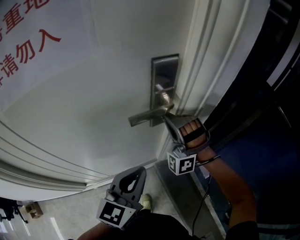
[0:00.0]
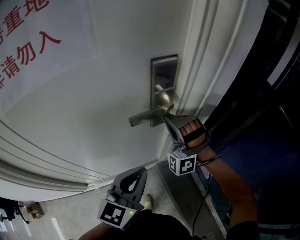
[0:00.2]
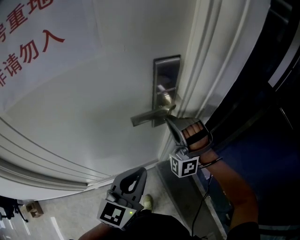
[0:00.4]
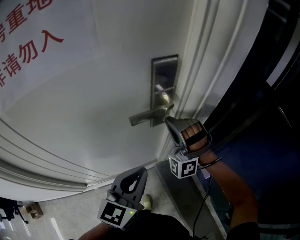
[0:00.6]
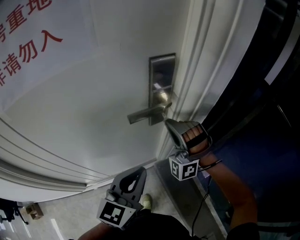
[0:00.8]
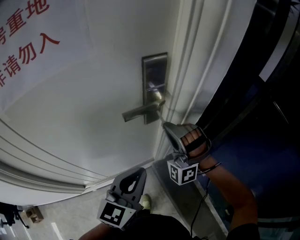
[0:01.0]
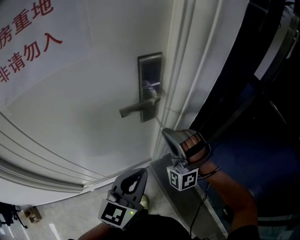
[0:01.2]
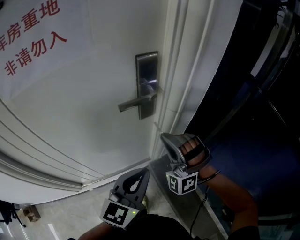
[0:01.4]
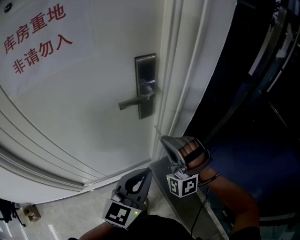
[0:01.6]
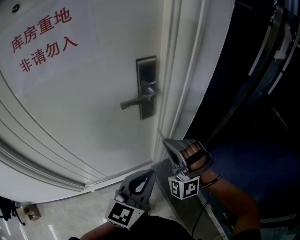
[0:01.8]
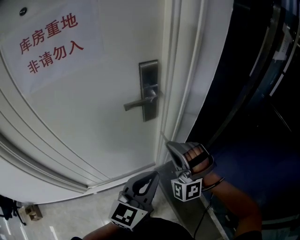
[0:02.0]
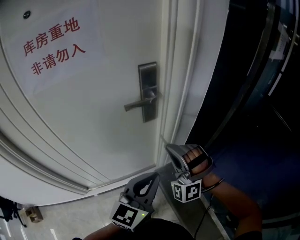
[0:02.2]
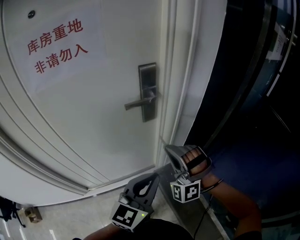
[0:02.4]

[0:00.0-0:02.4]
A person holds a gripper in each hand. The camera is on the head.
0:00.0 to 0:01.2: The left gripper changes place by some 5 cm. The right gripper travels backward by approximately 10 cm.
0:01.2 to 0:02.4: The right gripper shifts approximately 10 cm backward. Meanwhile the left gripper heads backward and to the right, covering some 10 cm.

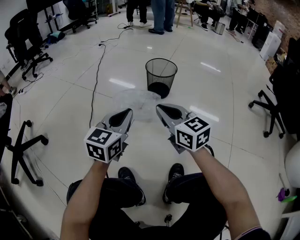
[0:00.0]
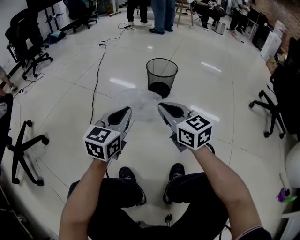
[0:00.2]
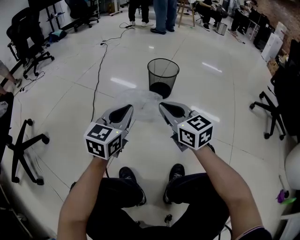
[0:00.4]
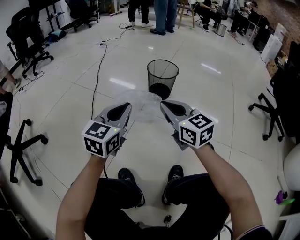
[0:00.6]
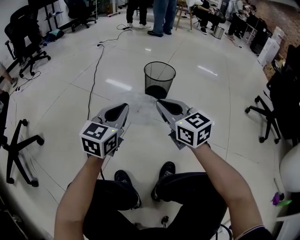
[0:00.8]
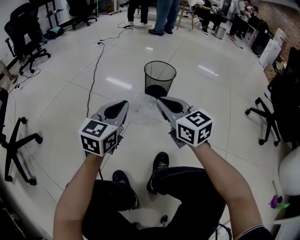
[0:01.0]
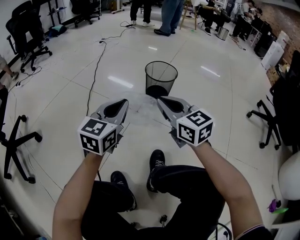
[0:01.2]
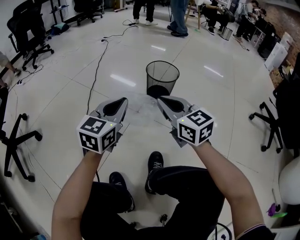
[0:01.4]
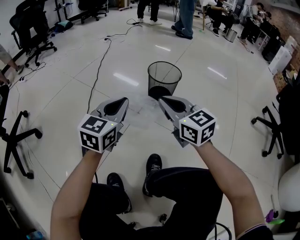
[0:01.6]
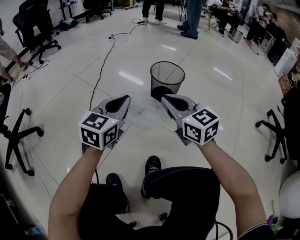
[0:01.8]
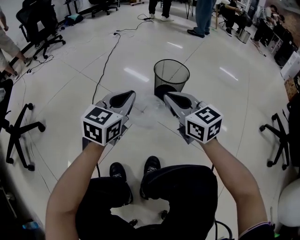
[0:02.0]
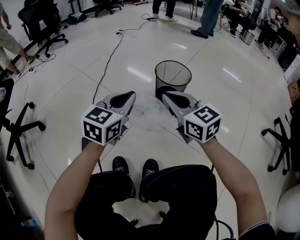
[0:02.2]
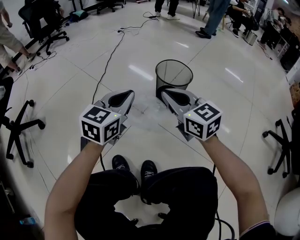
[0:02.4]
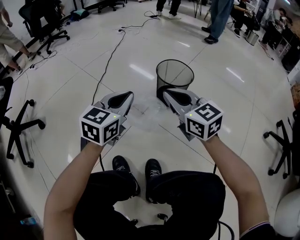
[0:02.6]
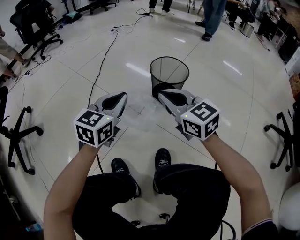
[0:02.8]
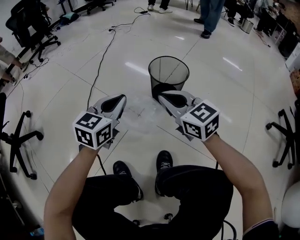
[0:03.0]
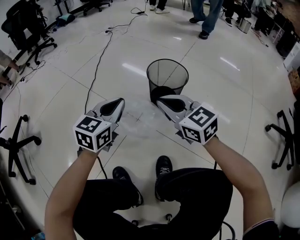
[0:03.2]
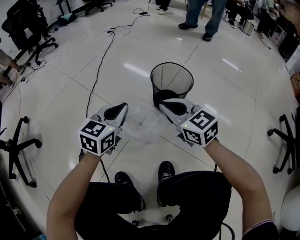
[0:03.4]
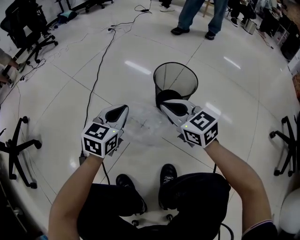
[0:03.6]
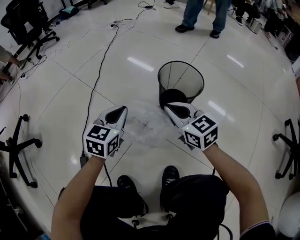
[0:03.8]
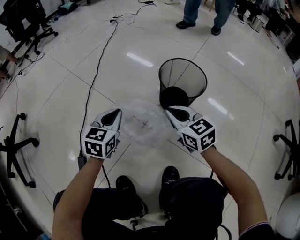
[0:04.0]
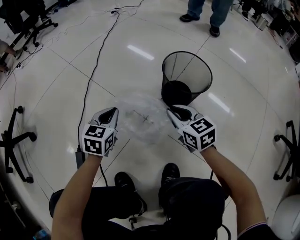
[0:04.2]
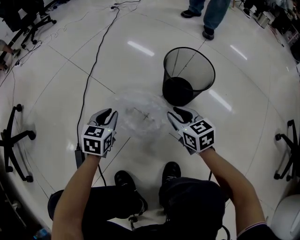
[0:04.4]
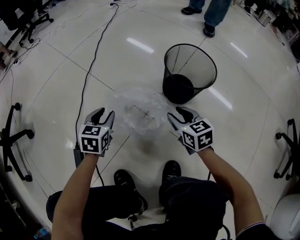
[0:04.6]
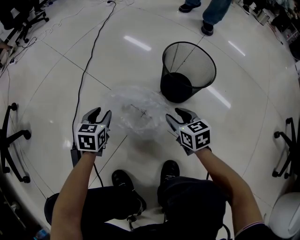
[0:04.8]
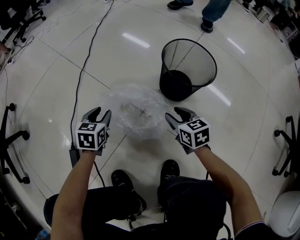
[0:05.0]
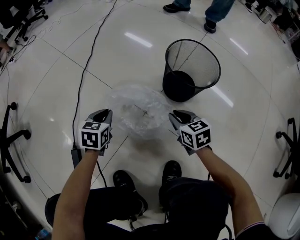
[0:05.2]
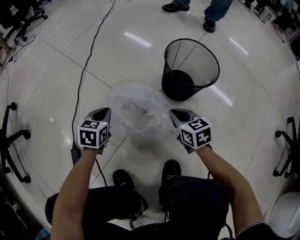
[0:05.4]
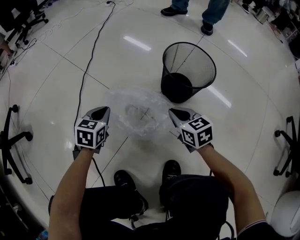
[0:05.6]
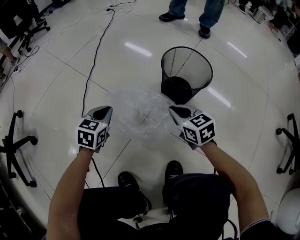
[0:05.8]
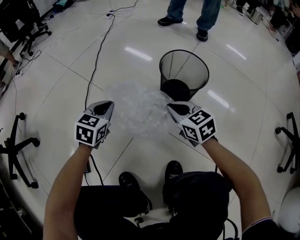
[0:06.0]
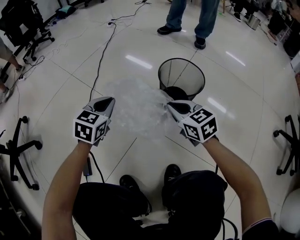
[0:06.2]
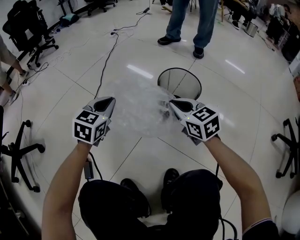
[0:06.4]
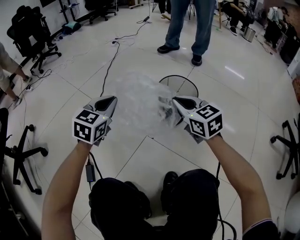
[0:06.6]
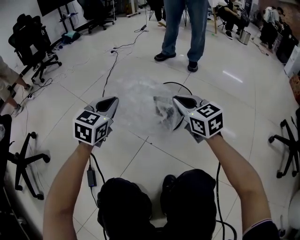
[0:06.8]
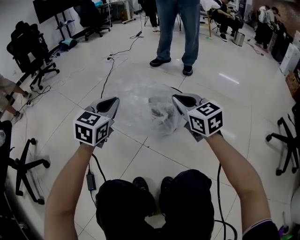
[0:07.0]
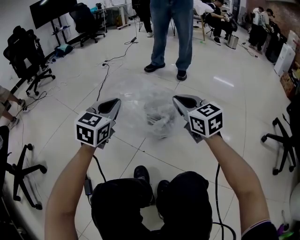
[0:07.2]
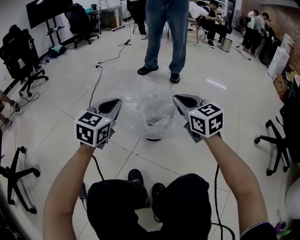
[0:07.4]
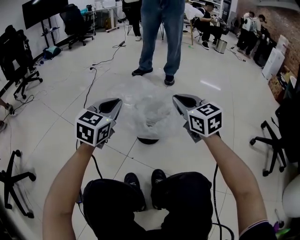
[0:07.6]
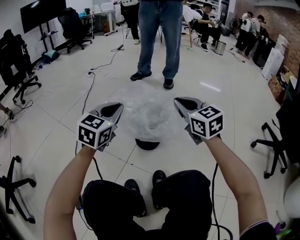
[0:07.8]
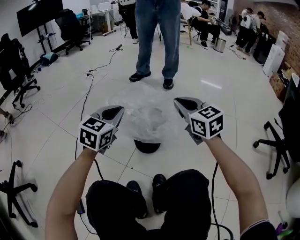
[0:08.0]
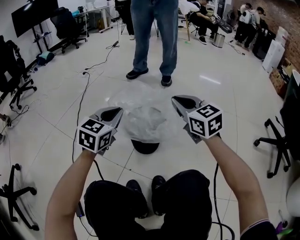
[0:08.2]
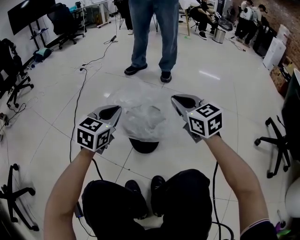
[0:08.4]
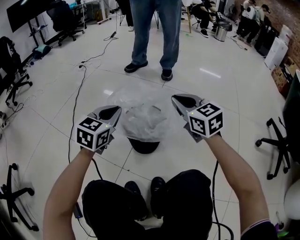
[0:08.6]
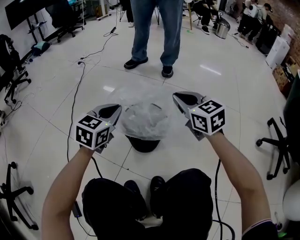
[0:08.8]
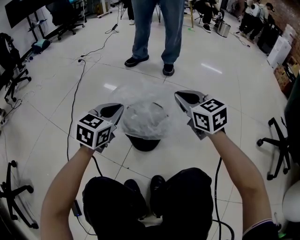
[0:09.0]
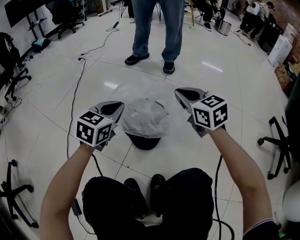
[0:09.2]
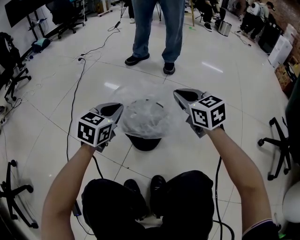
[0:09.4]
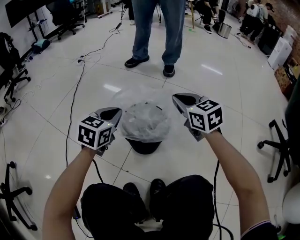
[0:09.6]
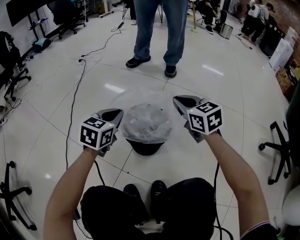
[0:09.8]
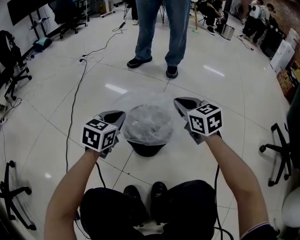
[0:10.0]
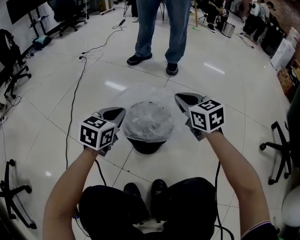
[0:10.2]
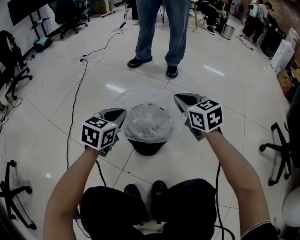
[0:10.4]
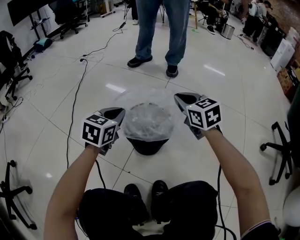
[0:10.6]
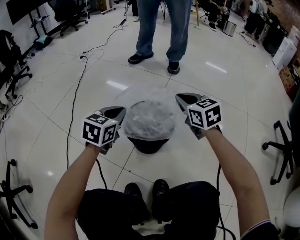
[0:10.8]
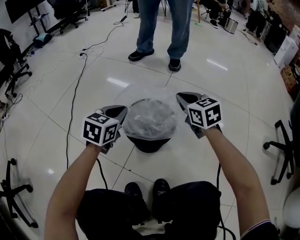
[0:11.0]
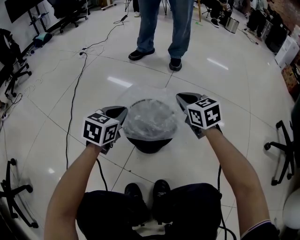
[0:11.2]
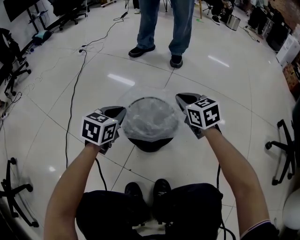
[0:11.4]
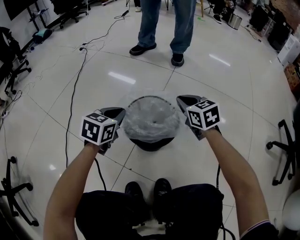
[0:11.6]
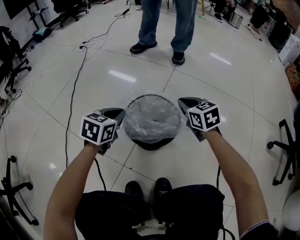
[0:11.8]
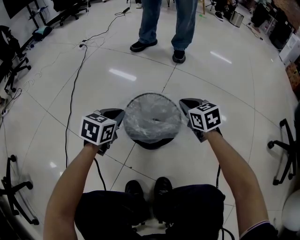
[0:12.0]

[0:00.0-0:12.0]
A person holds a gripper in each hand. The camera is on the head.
0:00.0 to 0:01.6: The two grippers go some 10 cm forward.
0:01.6 to 0:03.0: The two grippers go about 10 cm forward.
0:03.0 to 0:04.4: The right gripper shifts some 25 cm downward and forward, rotates roughly 20 degrees, and opens. Meanwhile the left gripper travels downward, forward and to the left by roughly 25 cm, and swivels about 30 degrees.
0:04.4 to 0:06.0: The right gripper closes its fingers. The left gripper goes roughly 5 cm upward, and opens, then closes again.
0:06.0 to 0:07.6: The grippers both shift upward and to the right by some 30 cm. The right gripper swivels roughly 30 degrees, while the left gripper rotates about 30 degrees.
0:07.6 to 0:09.0: The two grippers go roughly 15 cm forward and downward.
0:09.0 to 0:10.4: The right gripper shifts by roughly 5 cm.
0:10.4 to 0:12.0: The two grippers go approximately 10 cm downward.

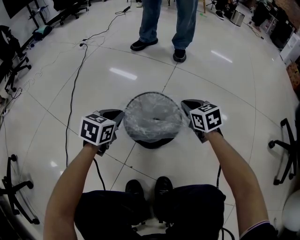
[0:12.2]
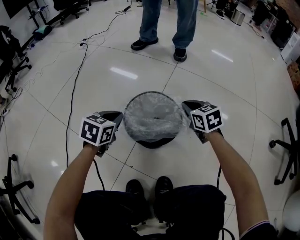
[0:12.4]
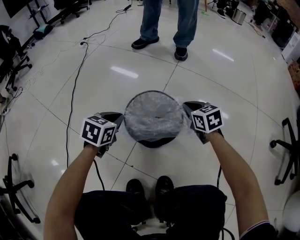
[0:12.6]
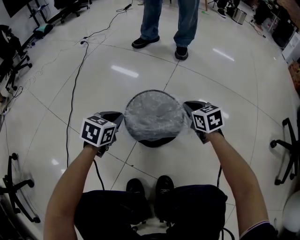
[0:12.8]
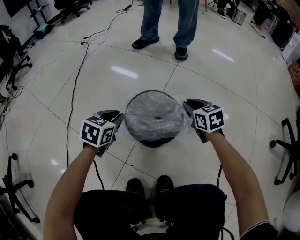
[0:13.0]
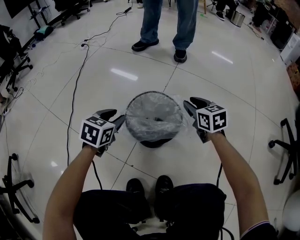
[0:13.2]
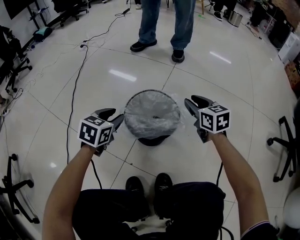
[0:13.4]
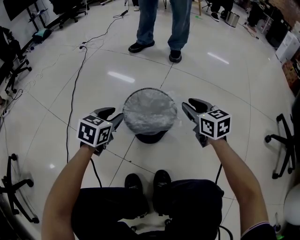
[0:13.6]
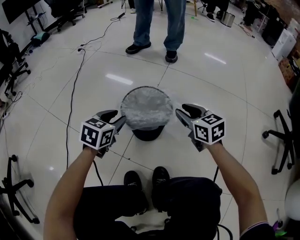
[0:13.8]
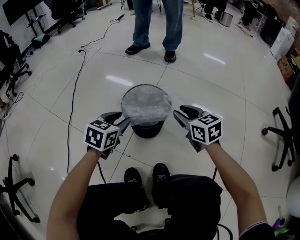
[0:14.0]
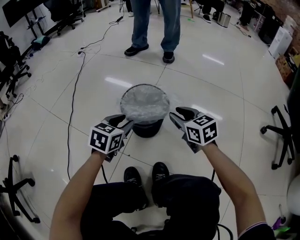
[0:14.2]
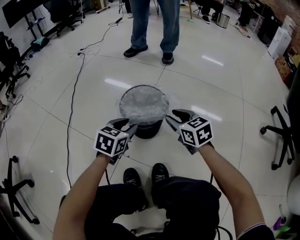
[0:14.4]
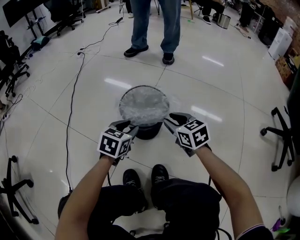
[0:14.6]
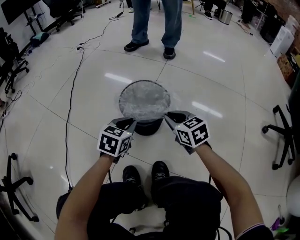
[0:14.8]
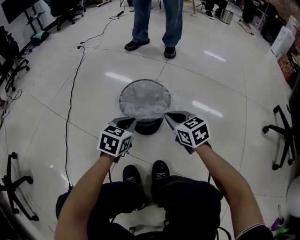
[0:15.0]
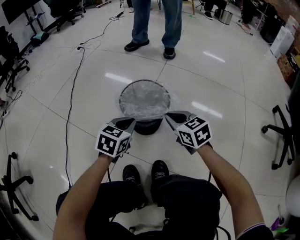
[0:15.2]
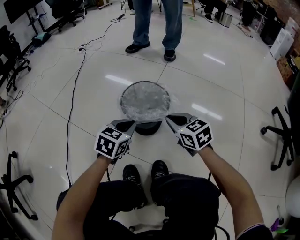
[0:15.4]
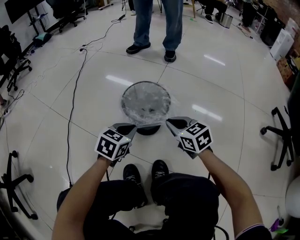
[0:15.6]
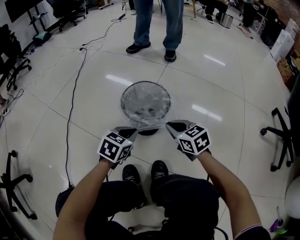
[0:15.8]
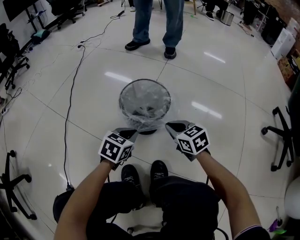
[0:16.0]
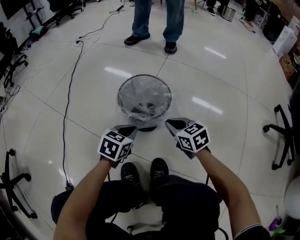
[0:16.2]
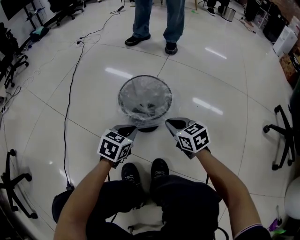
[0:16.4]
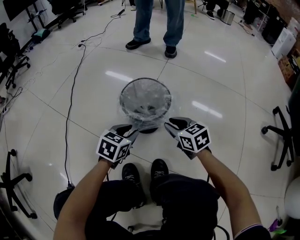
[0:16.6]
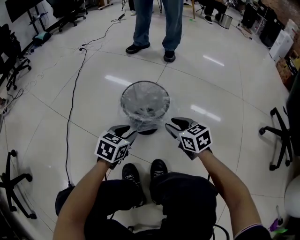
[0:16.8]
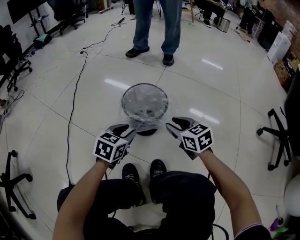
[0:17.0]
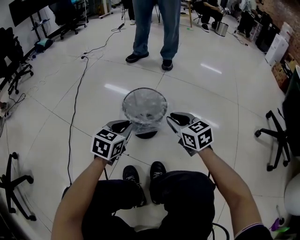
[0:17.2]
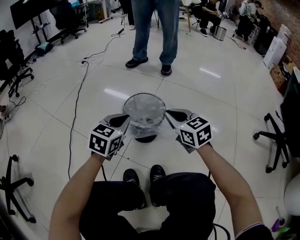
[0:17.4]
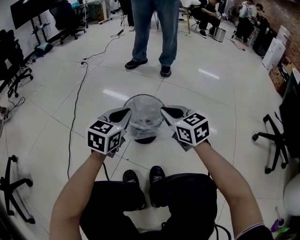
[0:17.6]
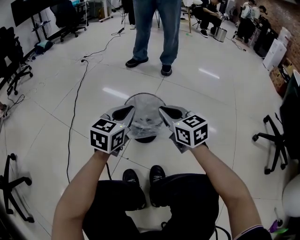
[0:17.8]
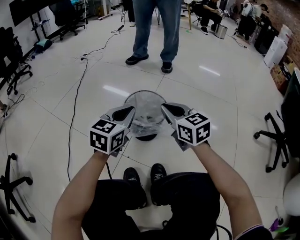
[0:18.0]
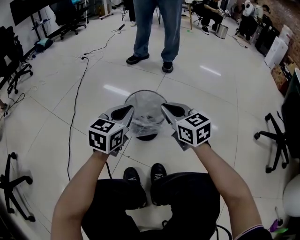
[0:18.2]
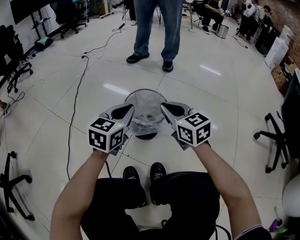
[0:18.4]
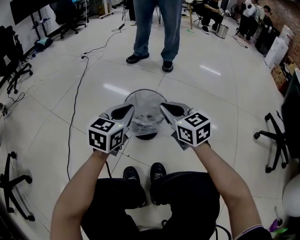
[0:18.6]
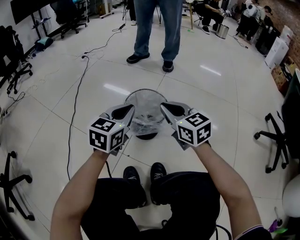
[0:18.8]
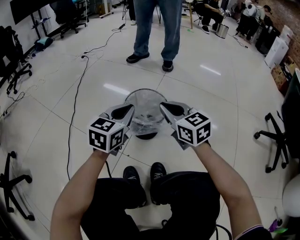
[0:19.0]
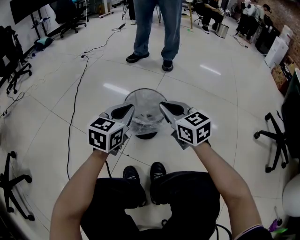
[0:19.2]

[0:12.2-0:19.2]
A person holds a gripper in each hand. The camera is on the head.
0:12.2 to 0:13.6: The left gripper opens, while the right gripper goes approximately 10 cm backward and upward, and opens up.
0:13.6 to 0:15.0: The right gripper shifts approximately 10 cm backward, to the left and downward, and closes up. Meanwhile the left gripper heads to the right and backward, covering roughly 10 cm, and closes its fingers.
0:15.0 to 0:16.4: The left gripper moves approximately 5 cm.
0:16.4 to 0:17.8: Both grippers travel together upward, about 20 cm. The left gripper swivels approximately 30 degrees, and opens, then closes again, while the right gripper opens, then closes once more.
0:17.8 to 0:19.2: The two grippers keep their place.

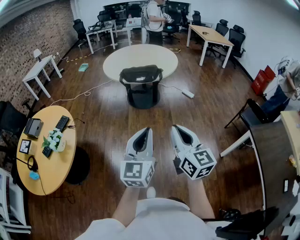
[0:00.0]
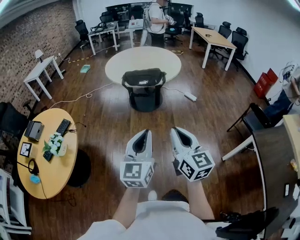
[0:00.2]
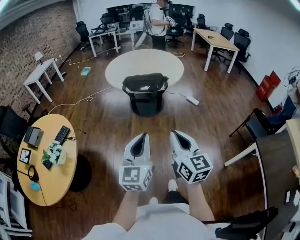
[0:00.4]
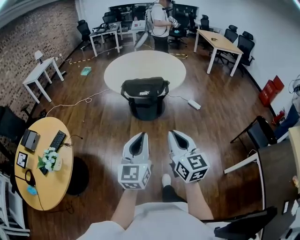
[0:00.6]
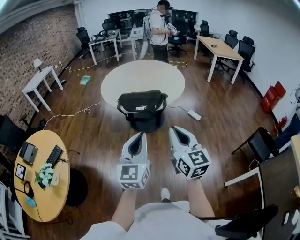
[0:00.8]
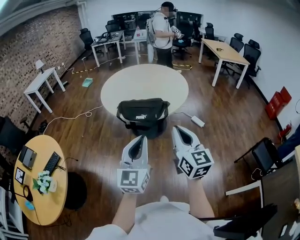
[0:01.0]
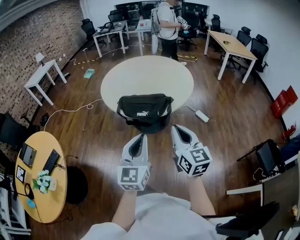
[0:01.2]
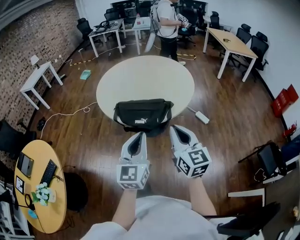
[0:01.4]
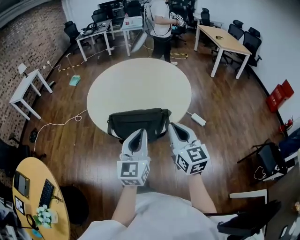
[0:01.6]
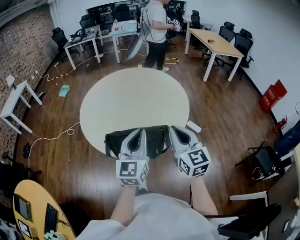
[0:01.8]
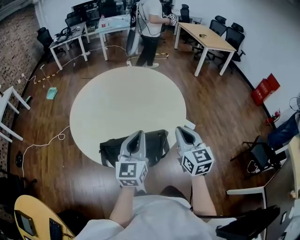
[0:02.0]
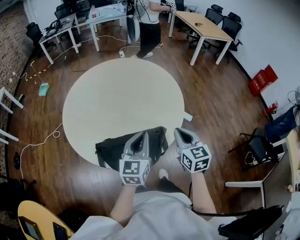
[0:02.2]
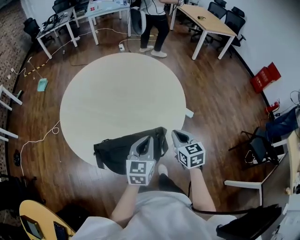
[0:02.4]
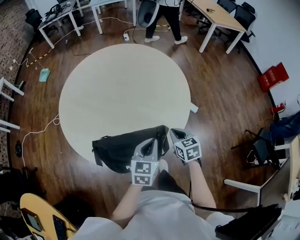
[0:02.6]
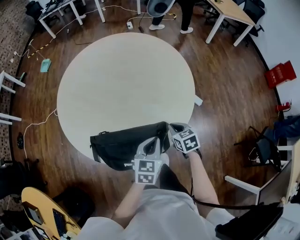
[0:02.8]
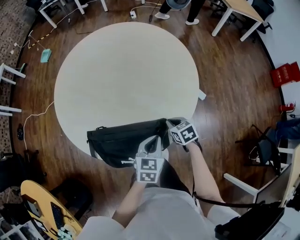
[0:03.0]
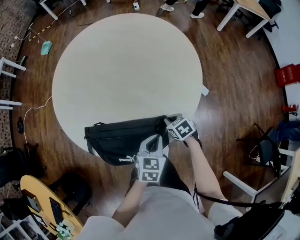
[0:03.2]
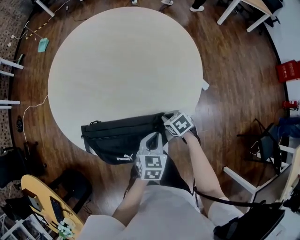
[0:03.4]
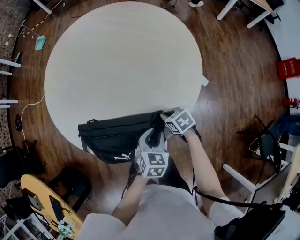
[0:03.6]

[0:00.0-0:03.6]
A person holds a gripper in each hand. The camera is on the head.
0:00.0 to 0:01.8: The two grippers travel together, forward, some 80 cm.
0:01.8 to 0:03.6: The two grippers go about 40 cm downward. The left gripper tilts its fingers about 50 degrees downward, and opens, while the right gripper tips its fingers downward by some 50 degrees.
